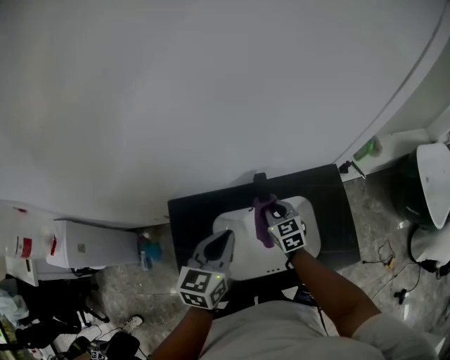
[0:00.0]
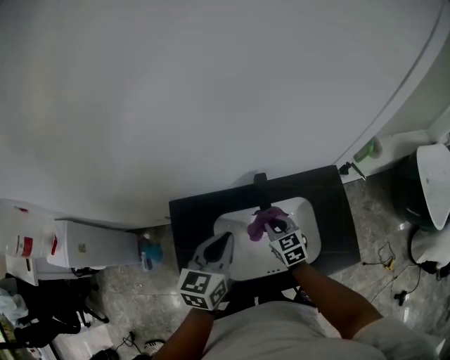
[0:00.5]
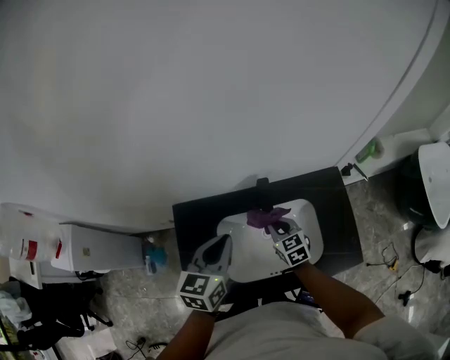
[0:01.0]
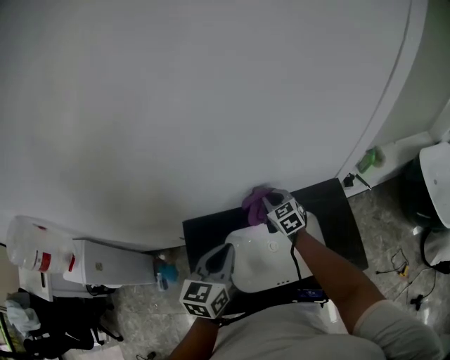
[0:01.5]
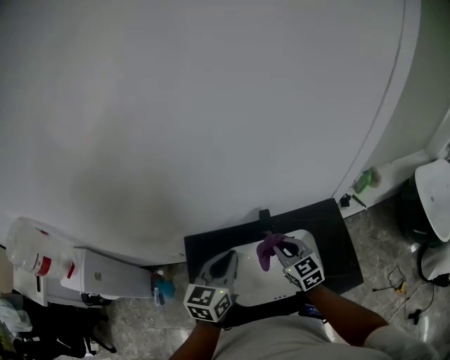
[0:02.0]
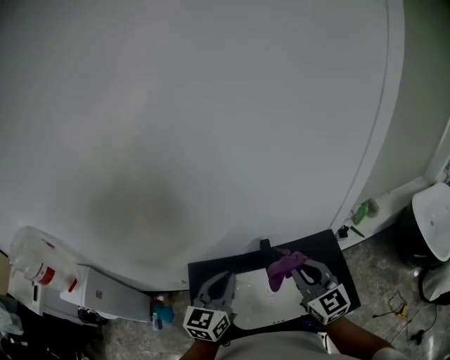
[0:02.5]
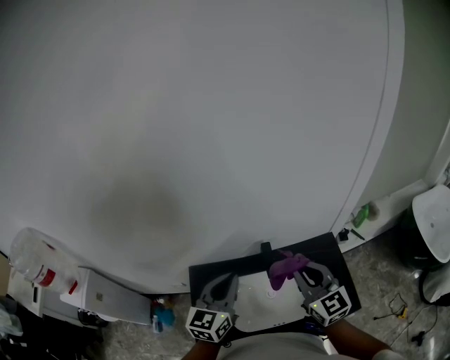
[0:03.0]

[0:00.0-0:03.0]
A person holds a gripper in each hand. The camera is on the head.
0:00.0 to 0:01.5: The right gripper travels forward and upward by approximately 10 cm.
0:01.5 to 0:03.0: The right gripper heads upward and backward, covering some 30 cm, and changes its angle by about 30 degrees; the left gripper travels upward by some 10 cm.

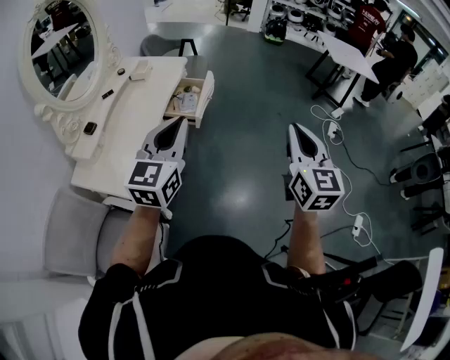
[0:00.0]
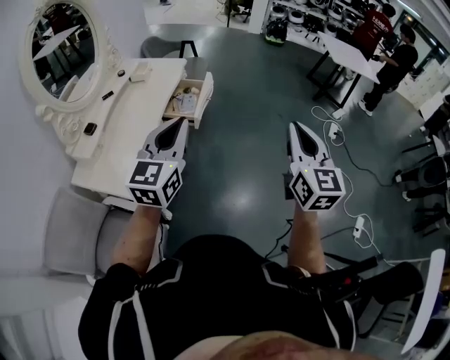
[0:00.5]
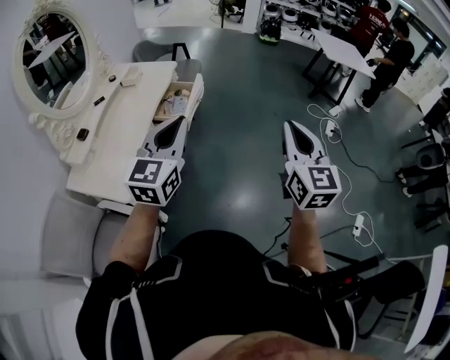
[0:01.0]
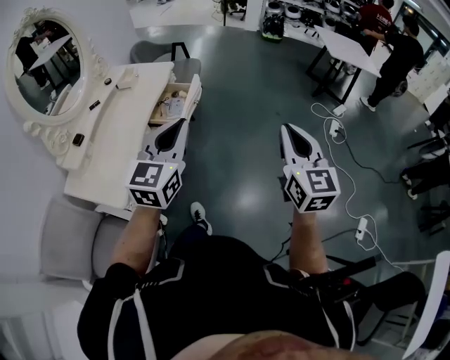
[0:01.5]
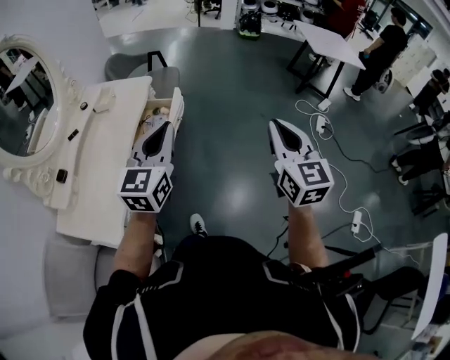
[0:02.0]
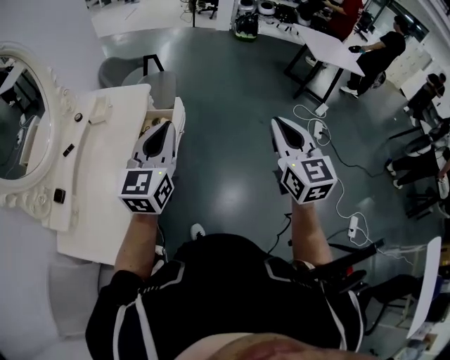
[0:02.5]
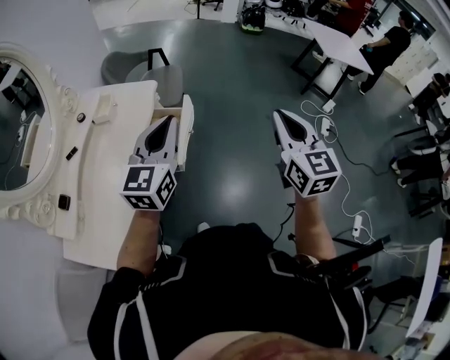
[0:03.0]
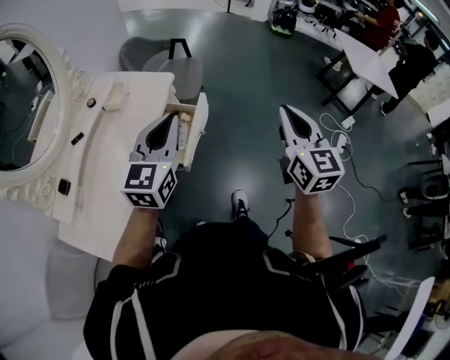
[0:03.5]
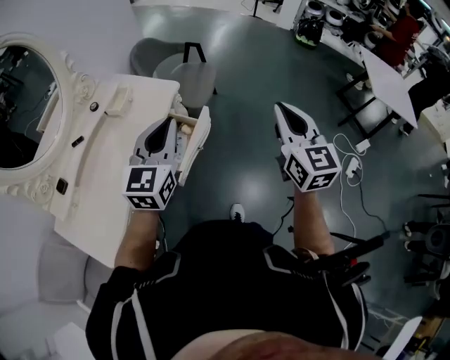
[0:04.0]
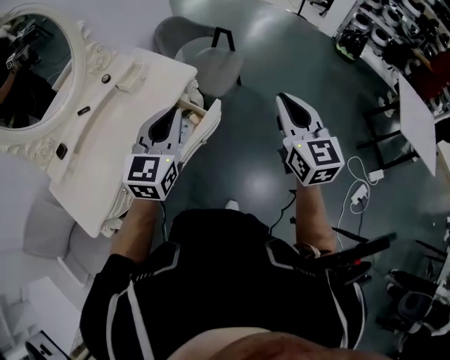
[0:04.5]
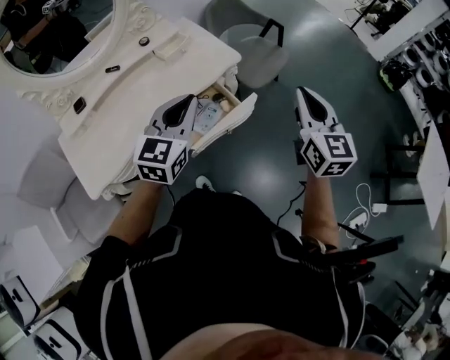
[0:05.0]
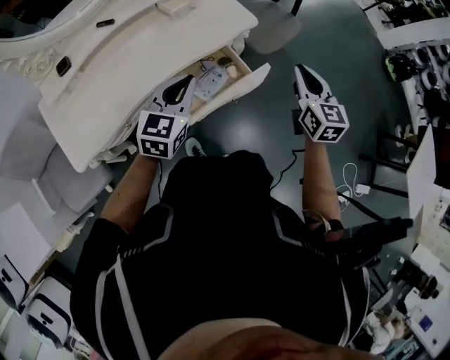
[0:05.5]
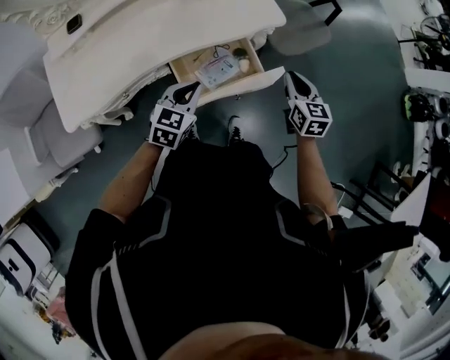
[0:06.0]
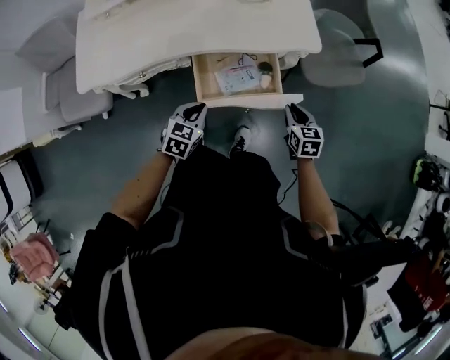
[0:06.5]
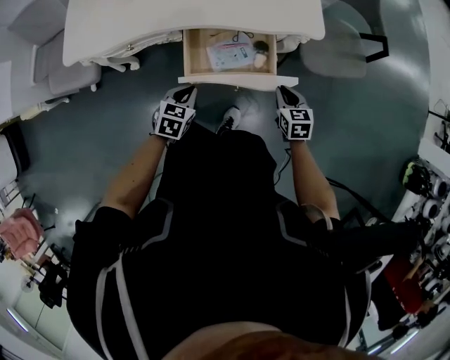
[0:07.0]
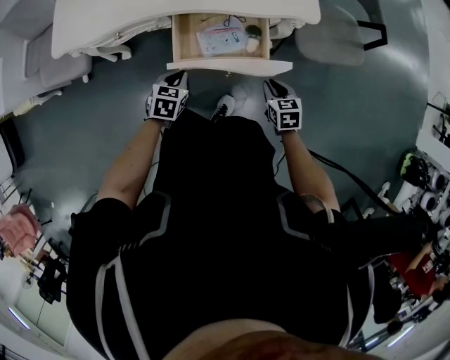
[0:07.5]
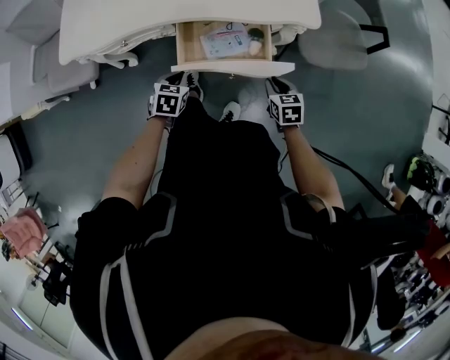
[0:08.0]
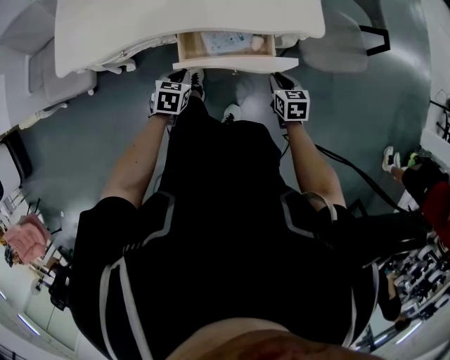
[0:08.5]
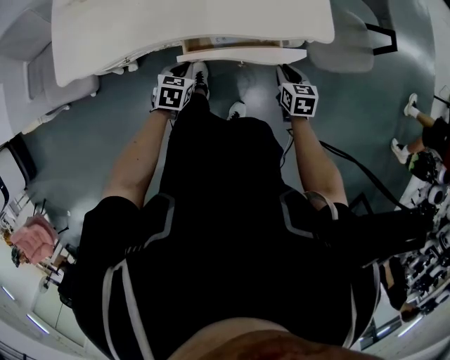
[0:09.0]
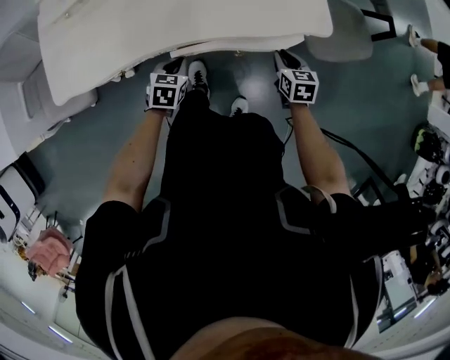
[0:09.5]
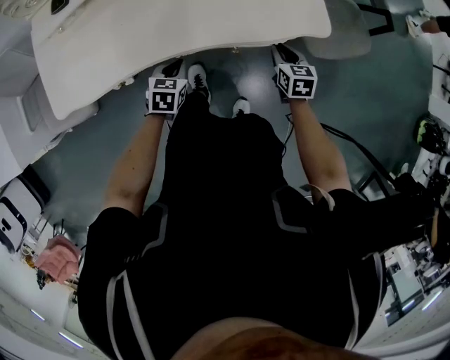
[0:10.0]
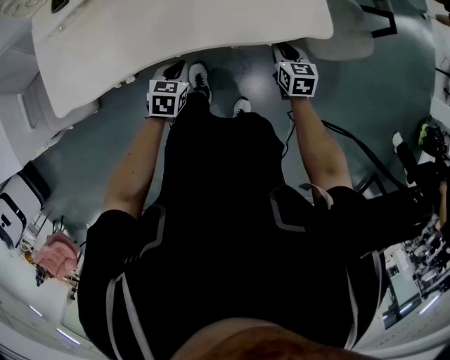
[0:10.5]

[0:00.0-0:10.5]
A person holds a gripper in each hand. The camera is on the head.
0:00.0 to 0:02.0: Both grippers move forward and to the right, some 20 cm.
0:02.0 to 0:04.0: Both grippers move forward, approximately 35 cm.
0:04.0 to 0:06.5: The grippers both shift downward by some 40 cm. The left gripper points its fingers some 40 degrees further downward; the right gripper points its fingers some 40 degrees further downward.
0:06.5 to 0:08.5: Both grippers move downward, some 10 cm.
0:08.5 to 0:10.5: Both grippers travel together forward, some 10 cm.

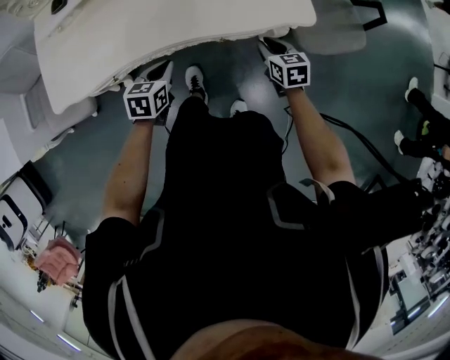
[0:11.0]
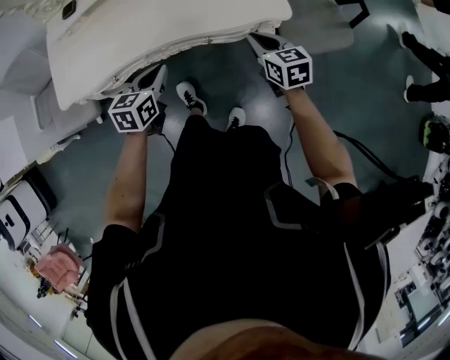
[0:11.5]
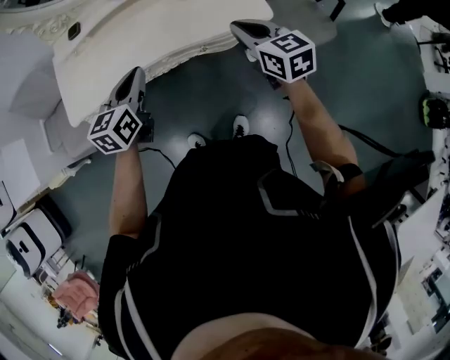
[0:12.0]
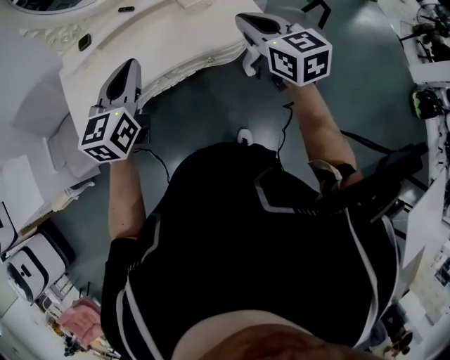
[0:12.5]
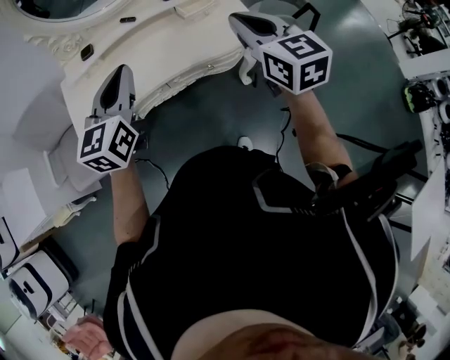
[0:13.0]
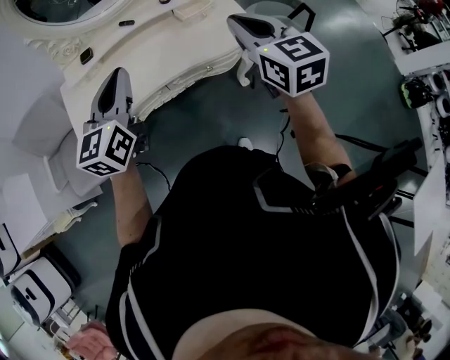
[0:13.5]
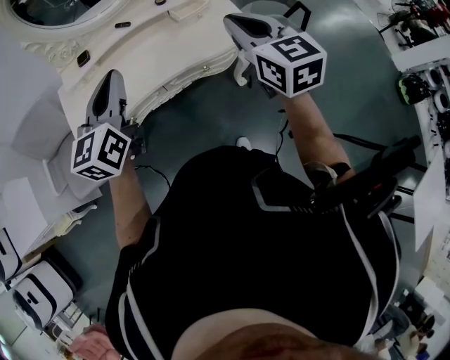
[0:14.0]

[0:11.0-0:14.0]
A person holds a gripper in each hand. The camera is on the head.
0:11.0 to 0:12.5: Both grippers move upward, some 40 cm. The left gripper points its fingers roughly 40 degrees further upward. The right gripper rotates roughly 30 degrees.
0:12.5 to 0:14.0: The left gripper is displaced to the left and upward by roughly 10 cm. The right gripper heads upward, covering approximately 5 cm.

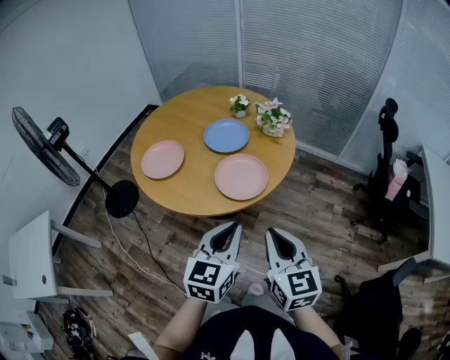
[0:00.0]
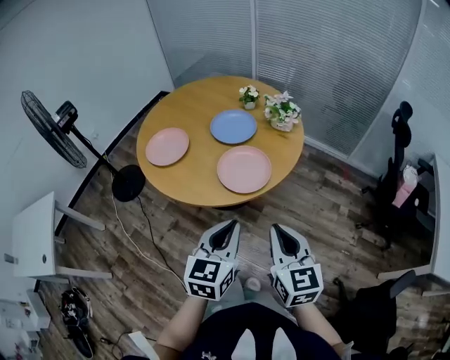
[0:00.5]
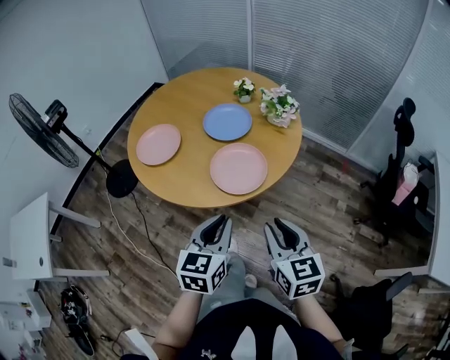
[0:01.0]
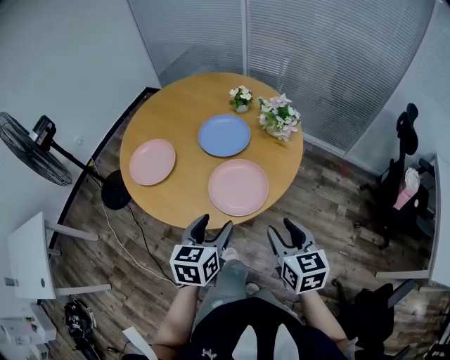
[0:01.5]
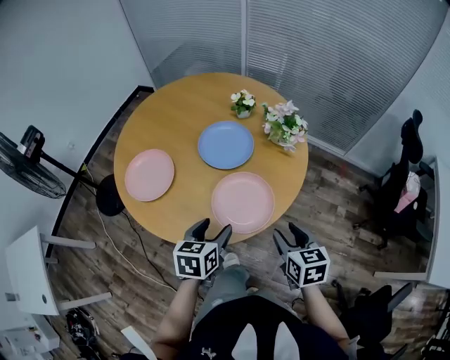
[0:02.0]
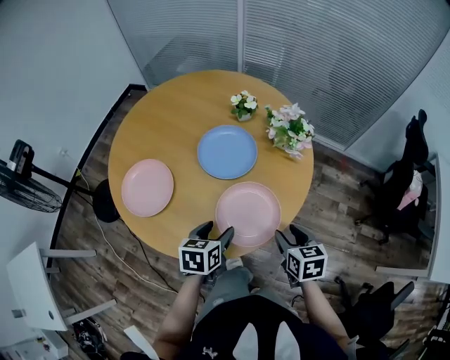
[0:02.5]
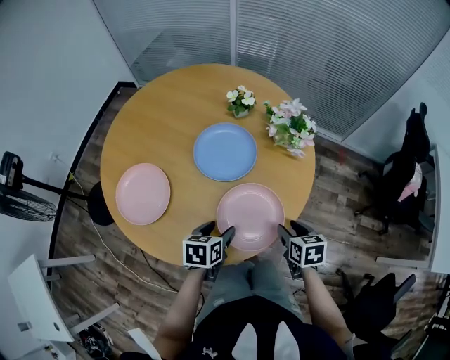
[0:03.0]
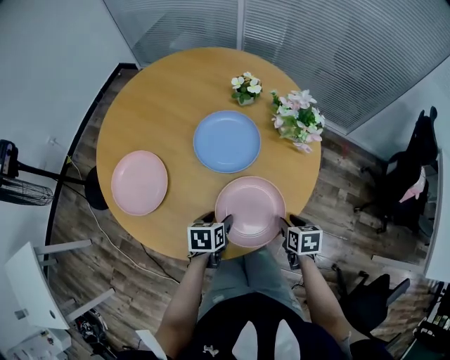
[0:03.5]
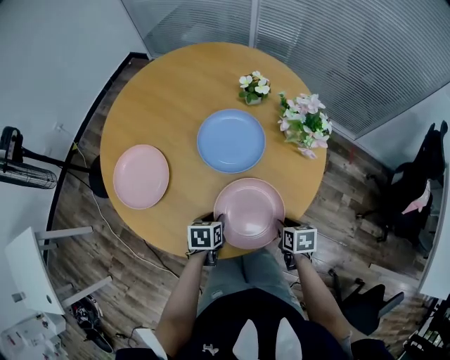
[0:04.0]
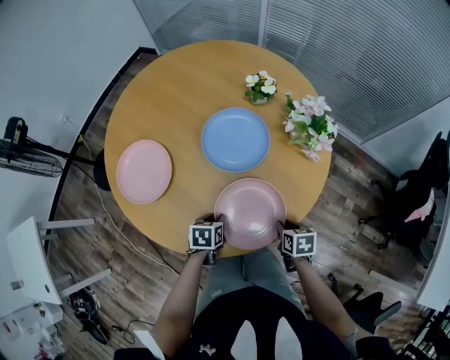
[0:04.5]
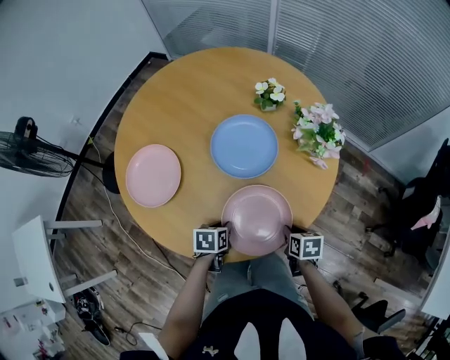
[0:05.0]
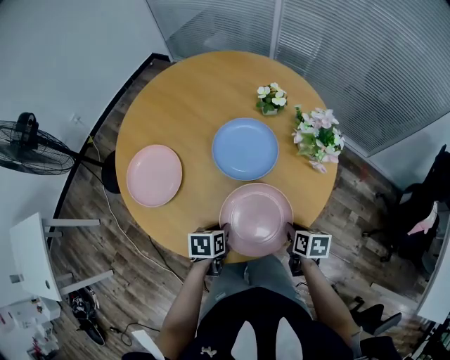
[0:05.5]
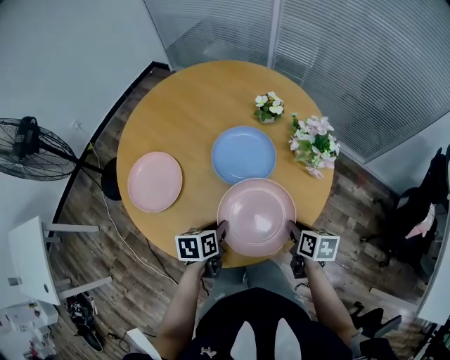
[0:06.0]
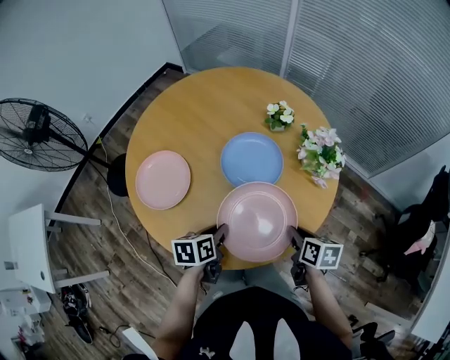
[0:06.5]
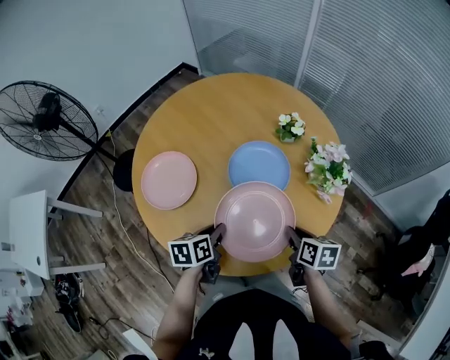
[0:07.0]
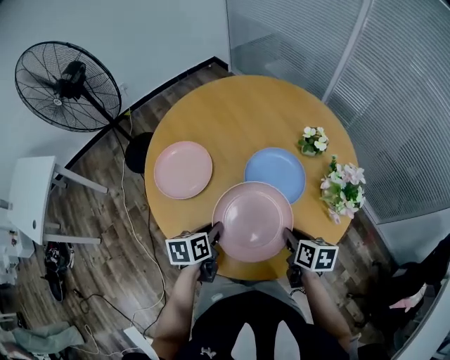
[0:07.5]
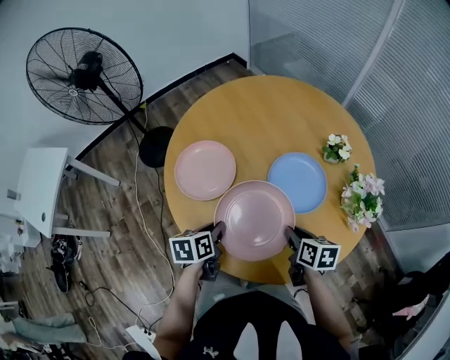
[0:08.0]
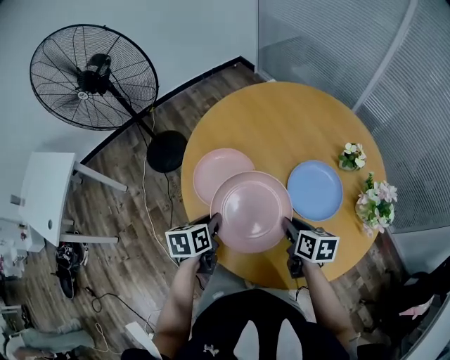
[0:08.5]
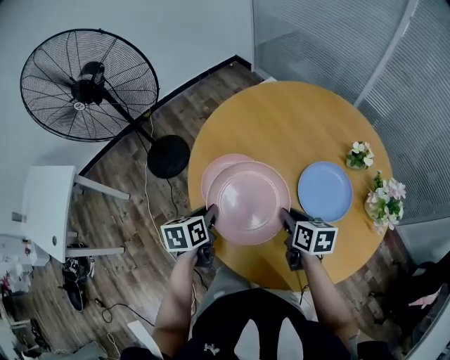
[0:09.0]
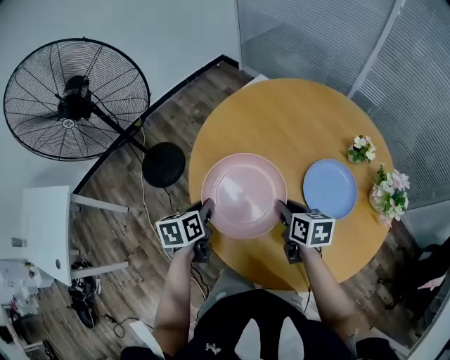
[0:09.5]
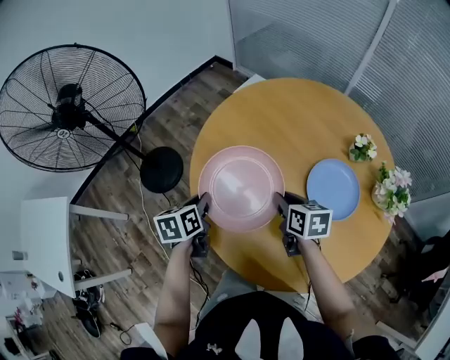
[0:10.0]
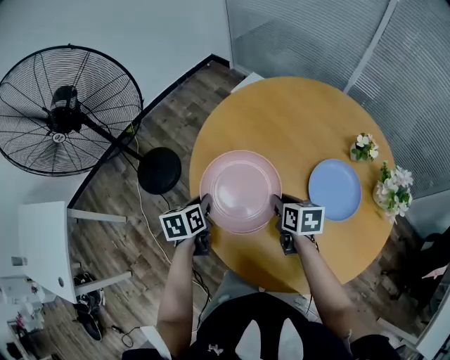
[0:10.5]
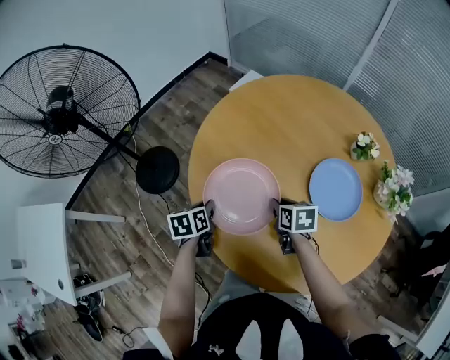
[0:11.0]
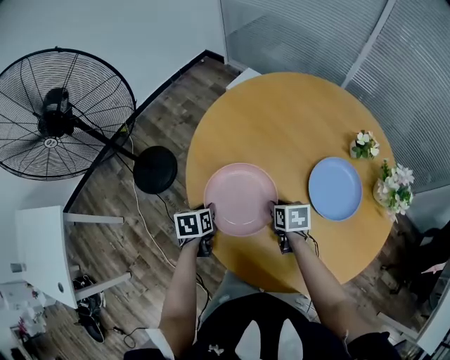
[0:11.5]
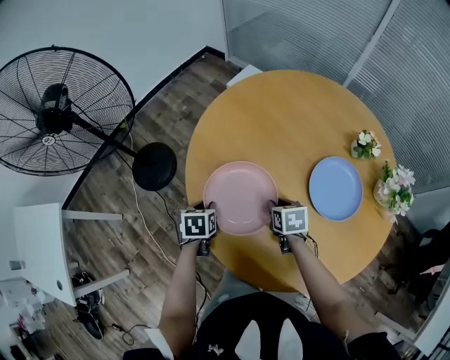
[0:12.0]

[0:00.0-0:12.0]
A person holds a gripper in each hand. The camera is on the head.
0:00.0 to 0:02.0: The grippers both shift forward and downward by some 25 cm. The left gripper turns by some 30 degrees, and opens; the right gripper rotates roughly 30 degrees, and opens its fingers.
0:02.0 to 0:04.0: Both grippers move downward and forward, some 20 cm. The right gripper changes its angle by some 30 degrees, and closes, while the left gripper turns by some 20 degrees, and closes.
0:04.0 to 0:06.0: The left gripper shifts approximately 10 cm upward. Meanwhile the right gripper travels upward and forward by some 10 cm.
0:06.0 to 0:08.0: The left gripper shifts by some 15 cm, and rotates about 30 degrees. Meanwhile the right gripper shifts by roughly 15 cm, and changes its angle by about 30 degrees.
0:08.0 to 0:10.0: The right gripper shifts about 25 cm to the left and forward. Meanwhile the left gripper moves forward and to the left, about 25 cm.
0:10.0 to 0:12.0: The grippers both shift downward by about 10 cm. The left gripper turns by roughly 20 degrees.
